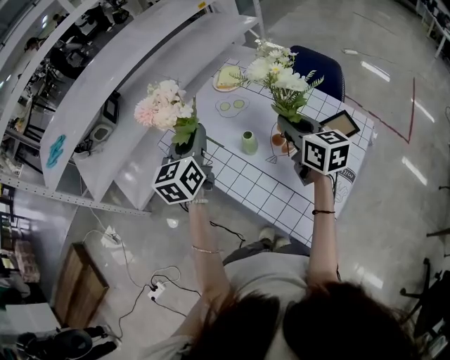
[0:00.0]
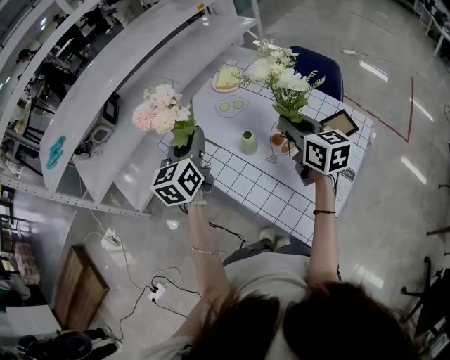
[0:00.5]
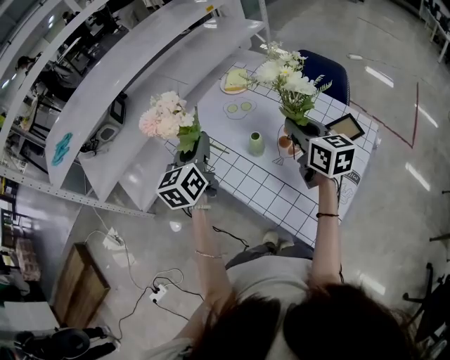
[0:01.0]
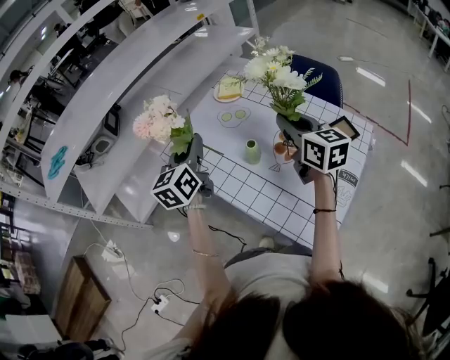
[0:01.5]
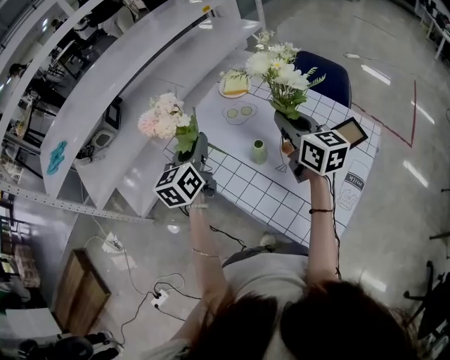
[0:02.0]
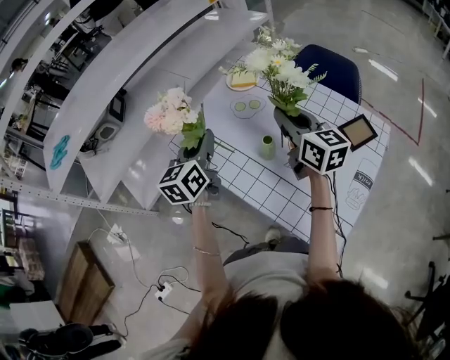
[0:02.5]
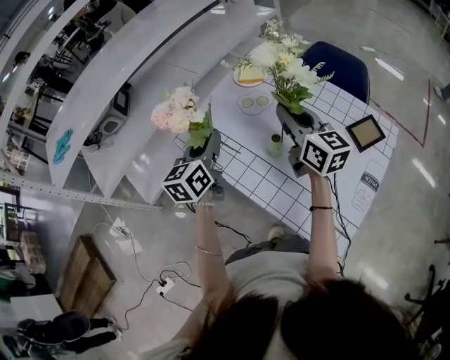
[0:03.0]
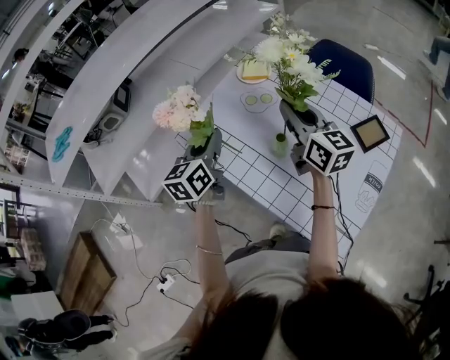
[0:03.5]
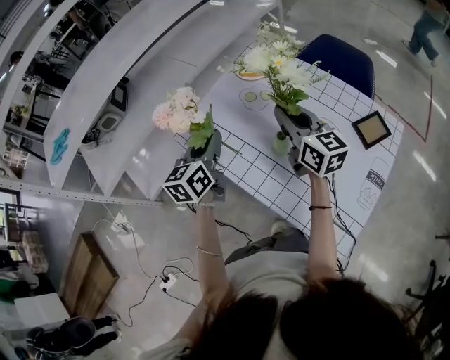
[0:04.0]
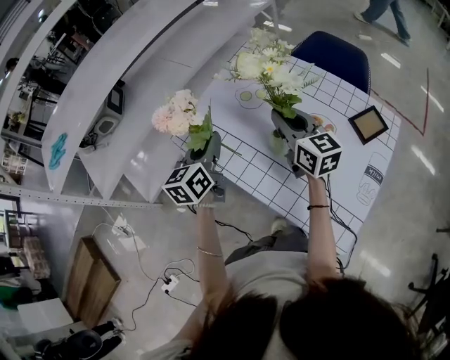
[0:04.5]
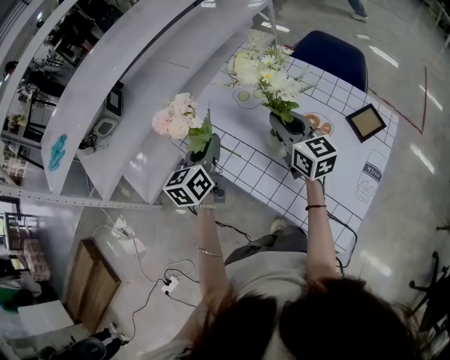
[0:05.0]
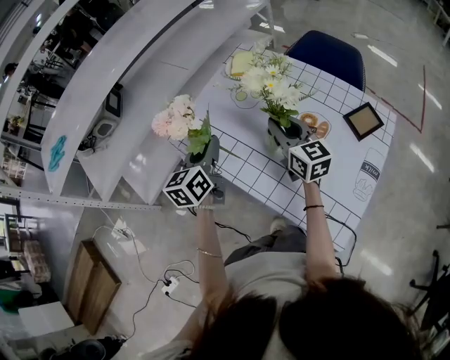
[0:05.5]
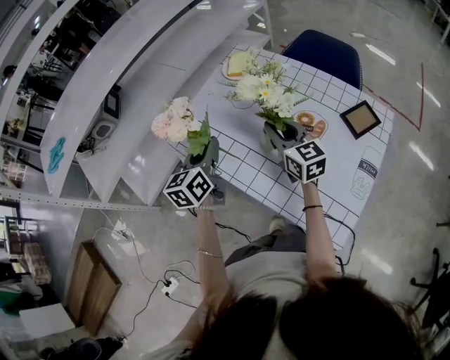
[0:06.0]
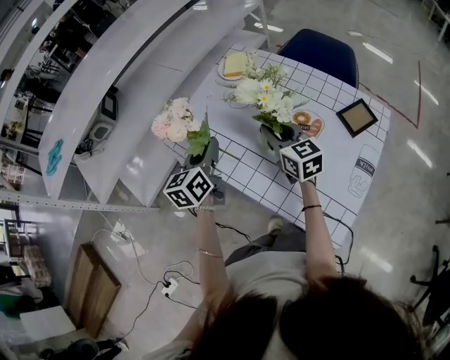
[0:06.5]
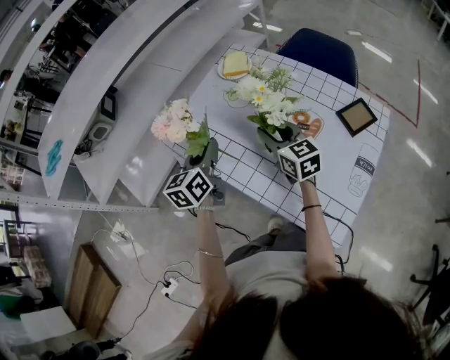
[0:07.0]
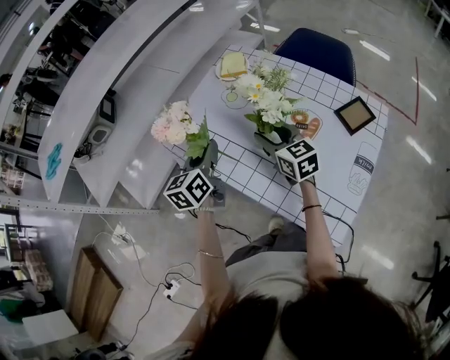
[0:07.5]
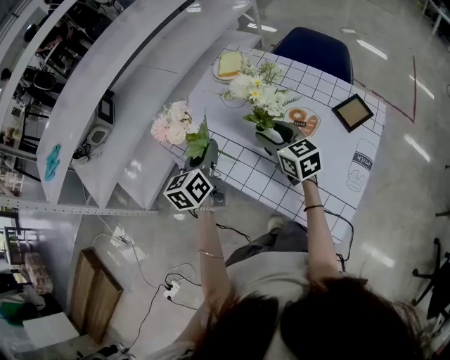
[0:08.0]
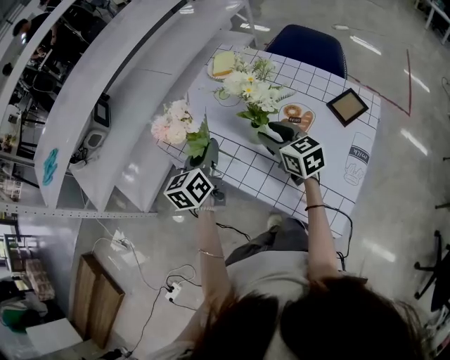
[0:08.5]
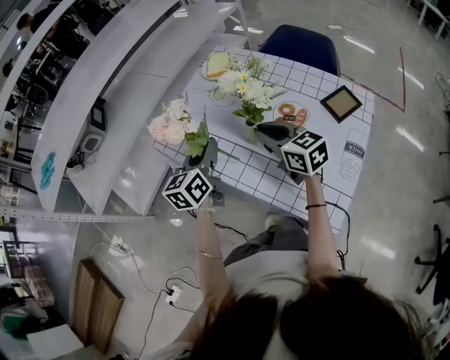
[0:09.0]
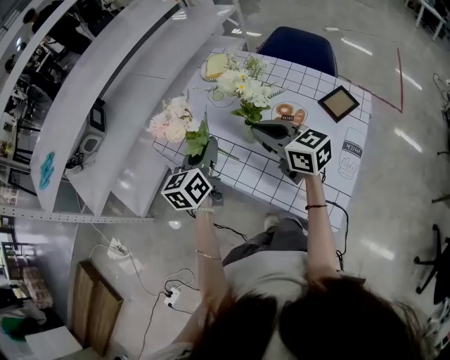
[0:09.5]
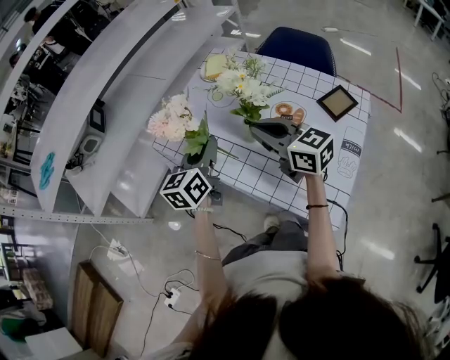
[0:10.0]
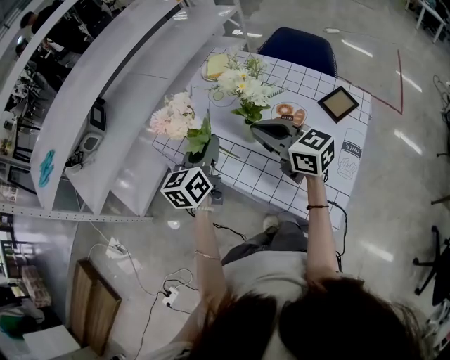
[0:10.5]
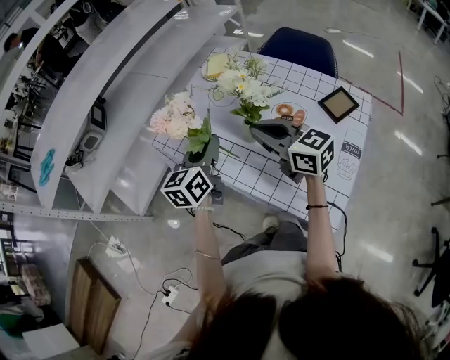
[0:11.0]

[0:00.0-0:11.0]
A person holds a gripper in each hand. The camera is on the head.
0.0 to 2.0 s: The right gripper changes place by approximately 5 cm, while the left gripper changes place by approximately 5 cm.
2.0 to 3.5 s: The right gripper ends up about 5 cm from where it was.
3.5 to 5.5 s: The right gripper shifts approximately 10 cm downward.
5.5 to 7.5 s: The right gripper opens.
7.5 to 9.0 s: The right gripper changes place by some 5 cm, and closes up.
9.0 to 11.0 s: The right gripper moves upward, roughly 5 cm.

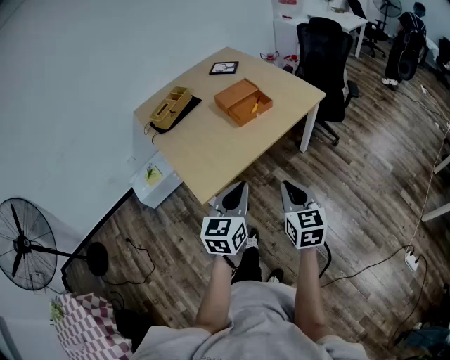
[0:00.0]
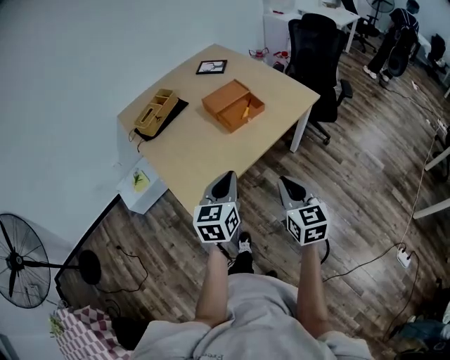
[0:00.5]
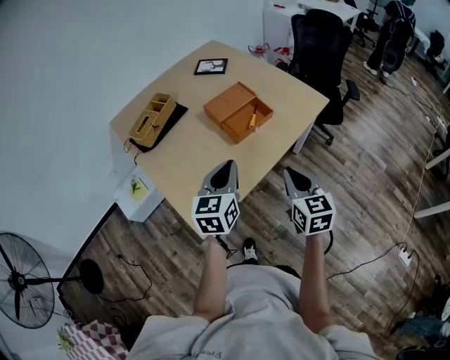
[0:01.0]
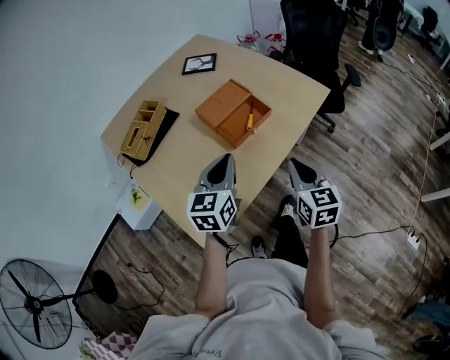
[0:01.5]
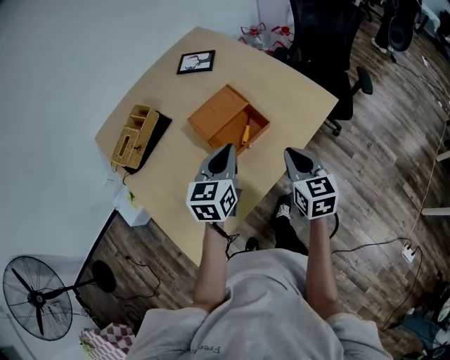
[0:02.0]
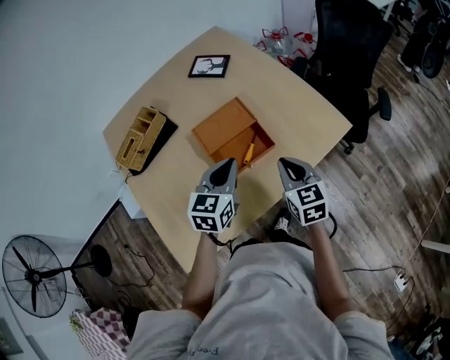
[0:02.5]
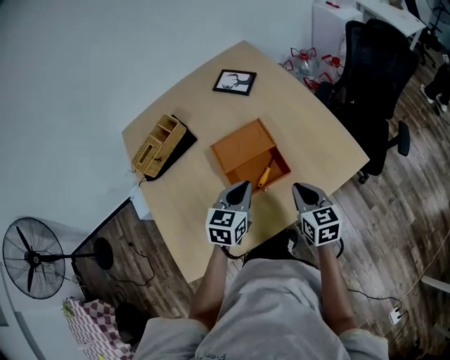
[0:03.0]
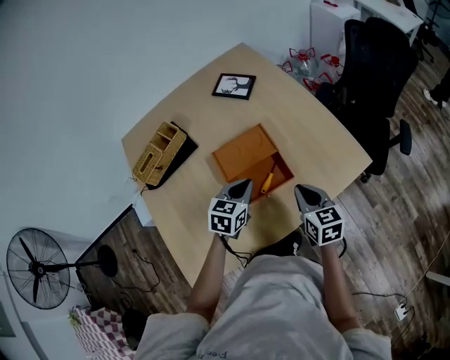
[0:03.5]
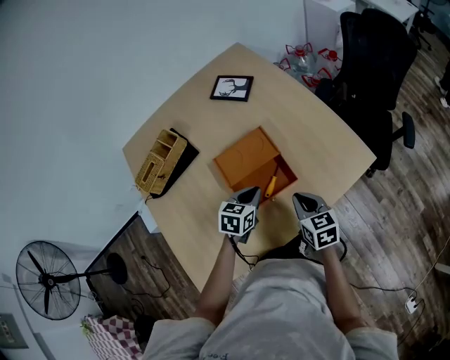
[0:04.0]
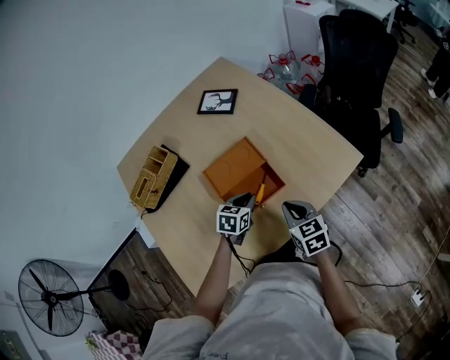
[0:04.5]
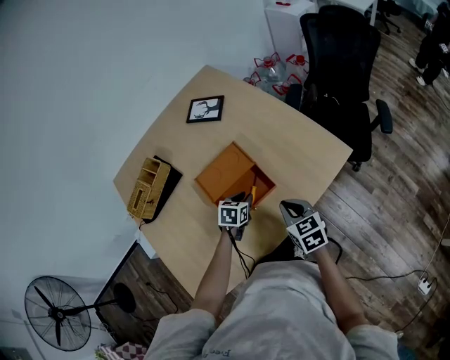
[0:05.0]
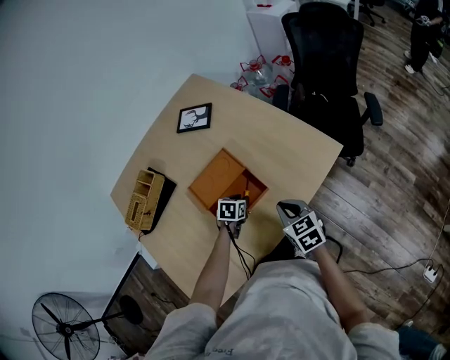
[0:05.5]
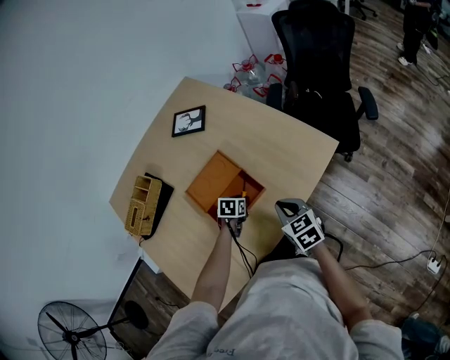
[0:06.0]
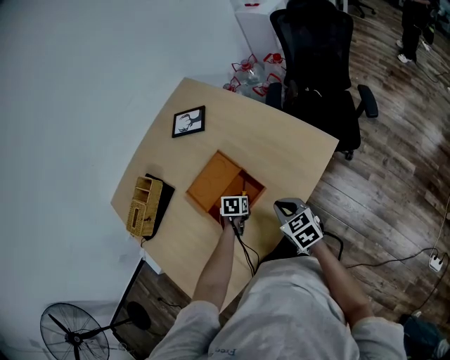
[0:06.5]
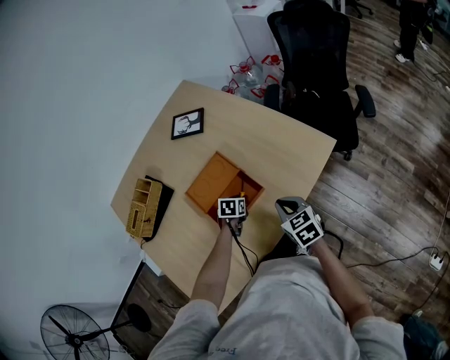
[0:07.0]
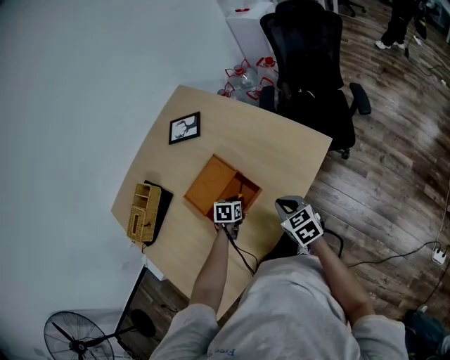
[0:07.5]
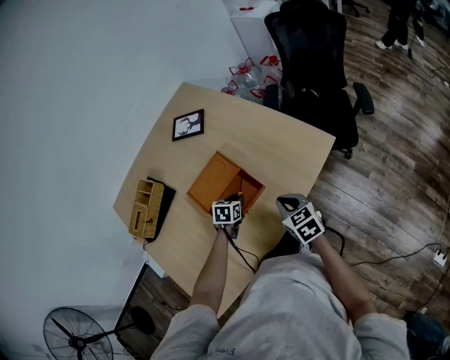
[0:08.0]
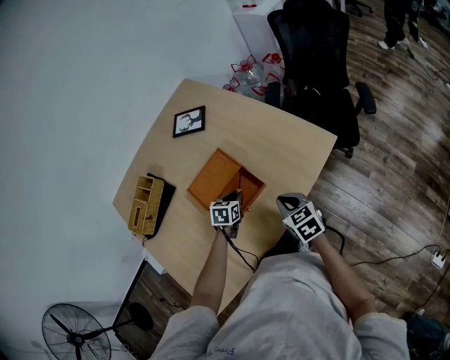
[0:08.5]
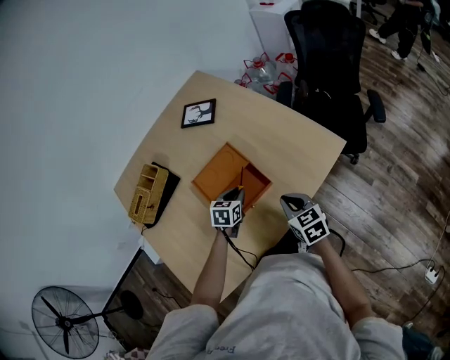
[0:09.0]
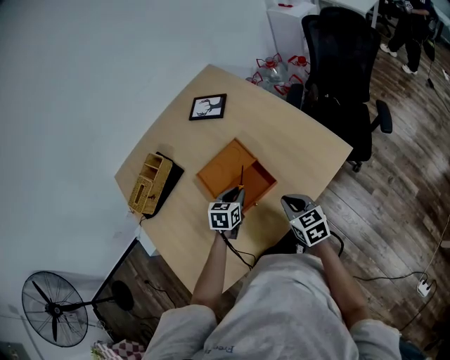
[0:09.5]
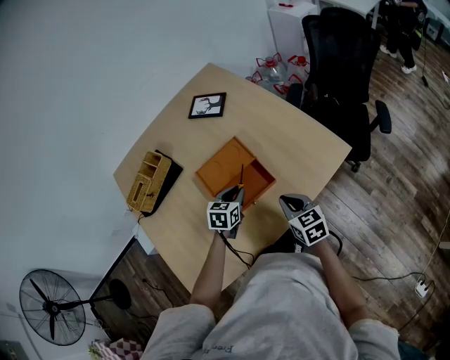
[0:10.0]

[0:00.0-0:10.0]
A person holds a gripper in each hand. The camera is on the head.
0.0 to 2.0 s: Both grippers are carried forward, some 40 cm.
2.0 to 4.0 s: The right gripper travels forward and downward by some 15 cm, and rotates some 20 degrees; the left gripper is displaced downward and forward by approximately 20 cm, and changes its angle by some 20 degrees.
4.0 to 6.0 s: The right gripper goes approximately 5 cm to the right. The left gripper goes about 15 cm downward, swivels approximately 20 degrees, and opens.
6.0 to 8.0 s: The grippers move only a little.
8.0 to 10.0 s: The left gripper shifts roughly 10 cm upward.

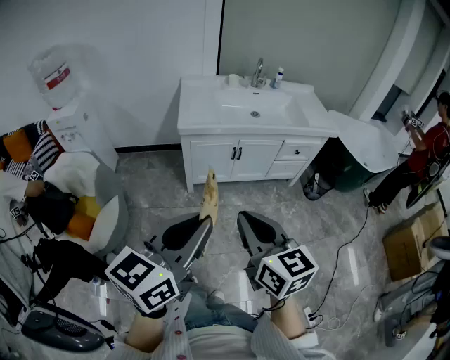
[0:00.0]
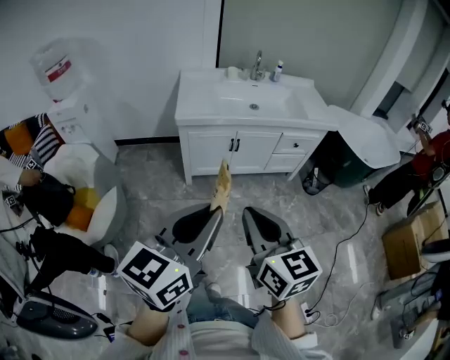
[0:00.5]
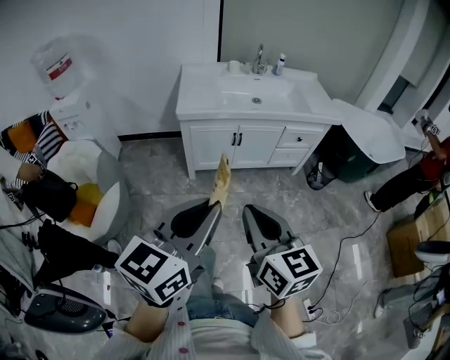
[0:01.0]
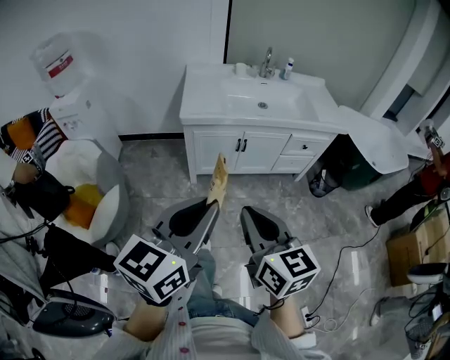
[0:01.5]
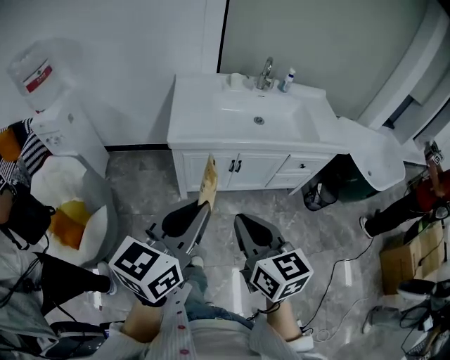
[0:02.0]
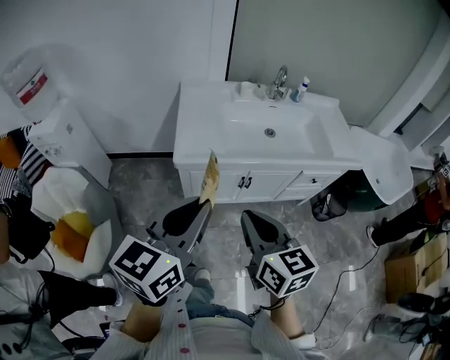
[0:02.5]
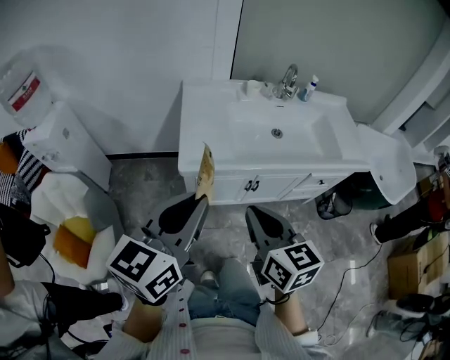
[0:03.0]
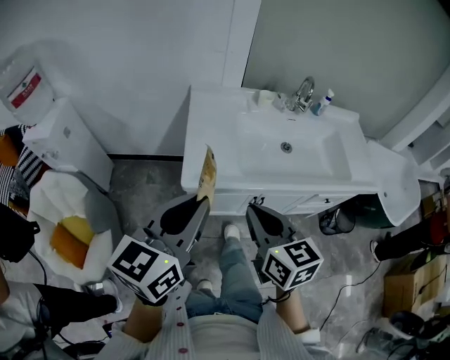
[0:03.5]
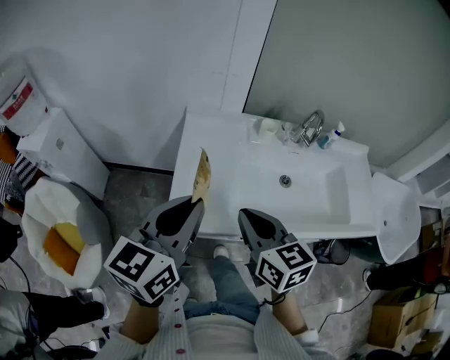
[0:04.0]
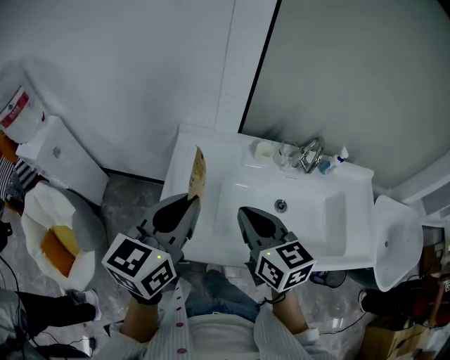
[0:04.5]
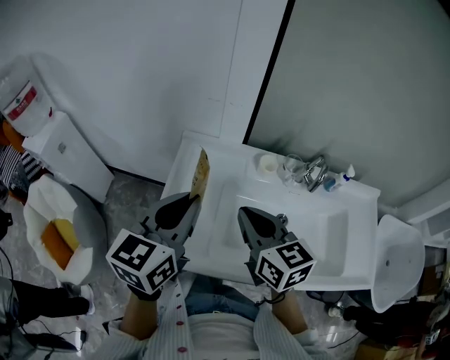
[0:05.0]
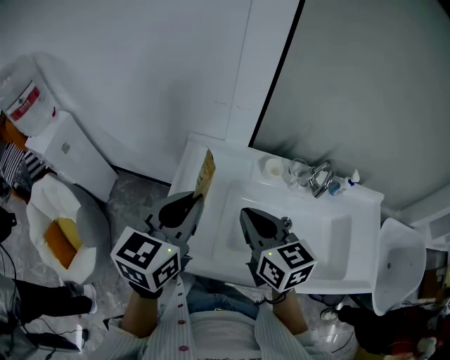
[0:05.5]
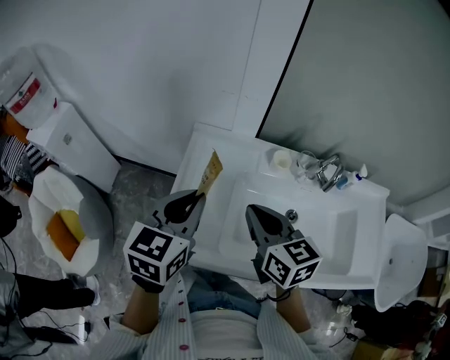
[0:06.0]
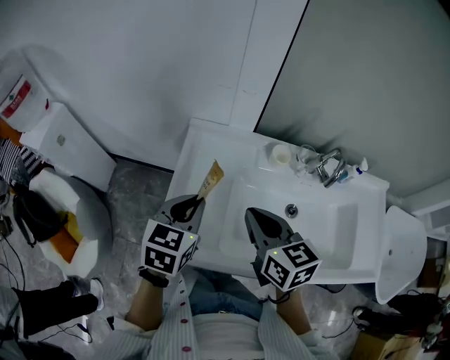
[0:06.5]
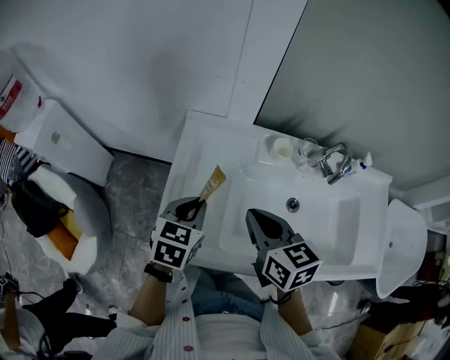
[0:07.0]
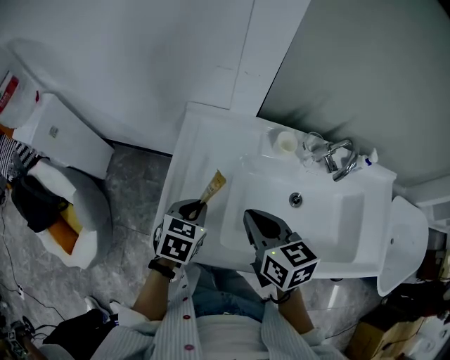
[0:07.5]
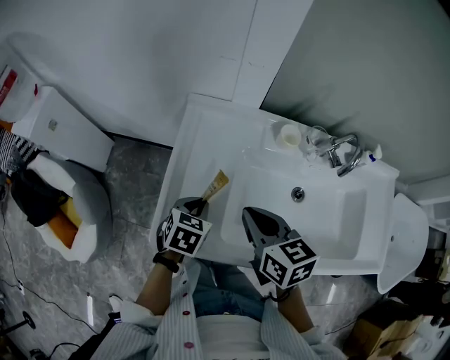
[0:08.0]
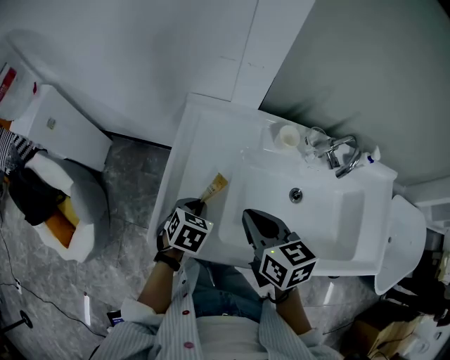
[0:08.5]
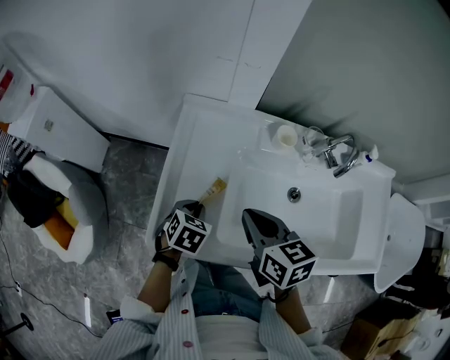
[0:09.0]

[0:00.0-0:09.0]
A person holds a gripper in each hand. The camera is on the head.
0.0 to 2.0 s: Both grippers travel together forward, about 20 cm.
2.0 to 4.5 s: The pair of grippers is taken forward, some 50 cm.
4.5 to 7.0 s: The right gripper moves downward, some 5 cm. Meanwhile the left gripper goes roughly 20 cm downward, and tips its fingers downward by approximately 30 degrees.
7.0 to 9.0 s: The left gripper heads downward, covering approximately 15 cm, and changes its angle by about 20 degrees.
